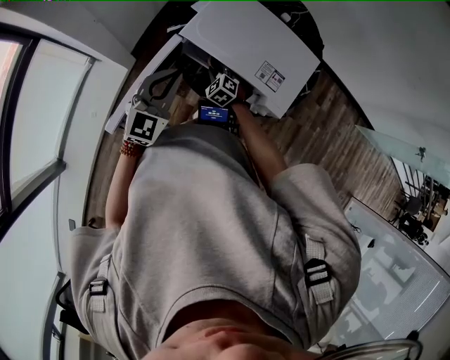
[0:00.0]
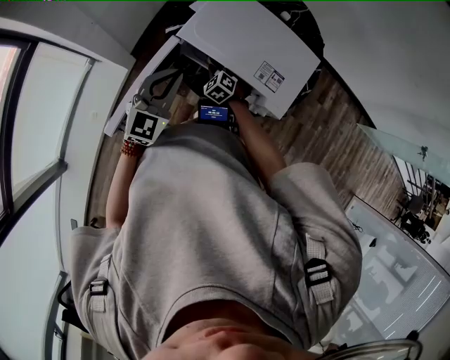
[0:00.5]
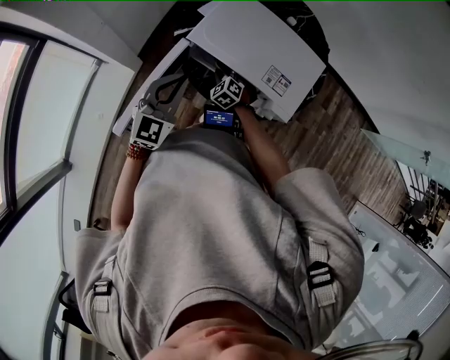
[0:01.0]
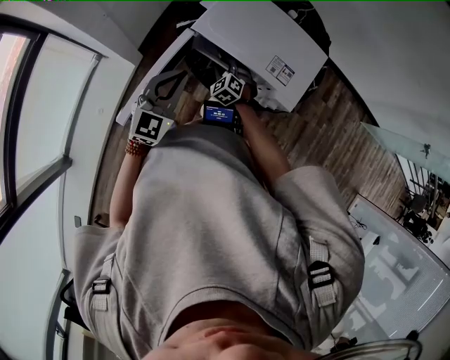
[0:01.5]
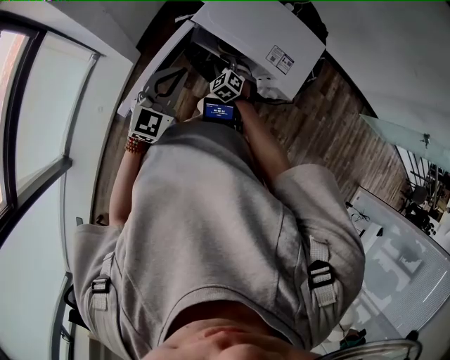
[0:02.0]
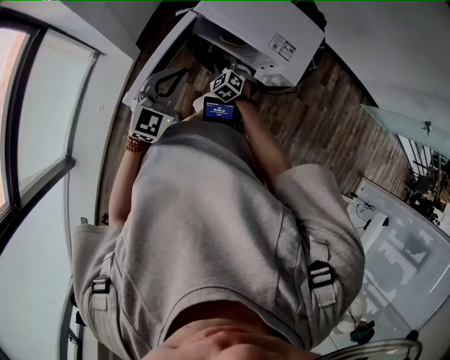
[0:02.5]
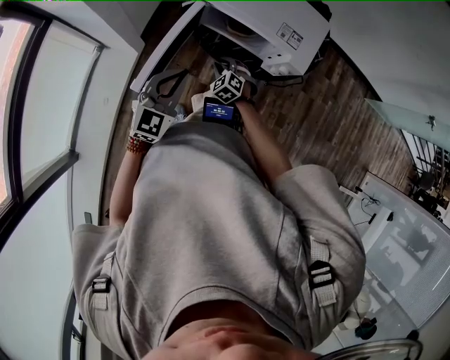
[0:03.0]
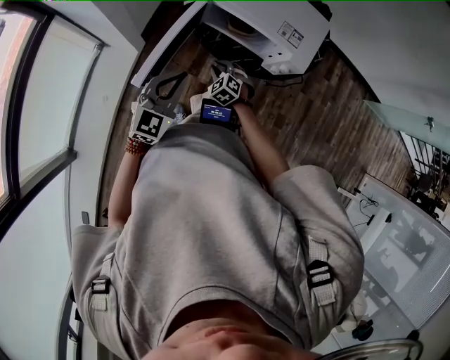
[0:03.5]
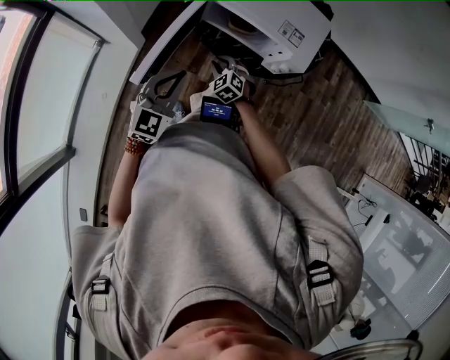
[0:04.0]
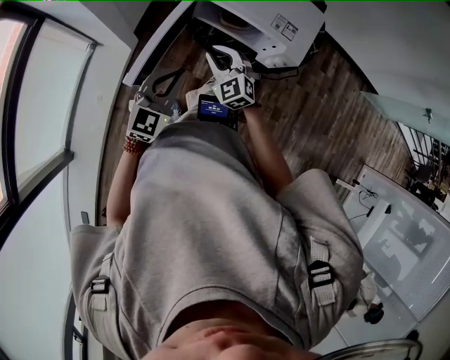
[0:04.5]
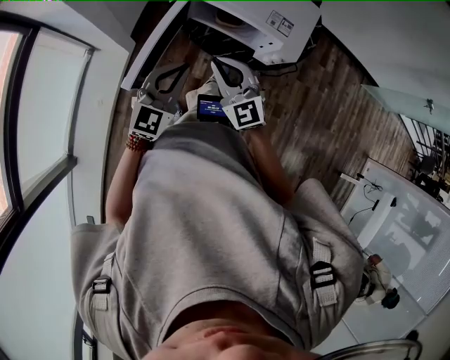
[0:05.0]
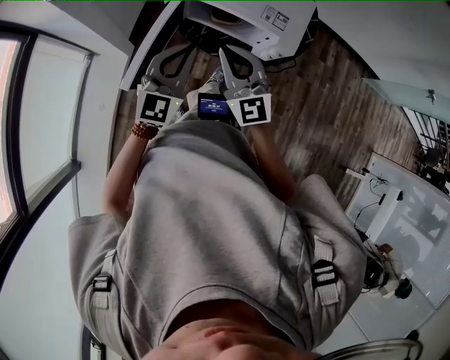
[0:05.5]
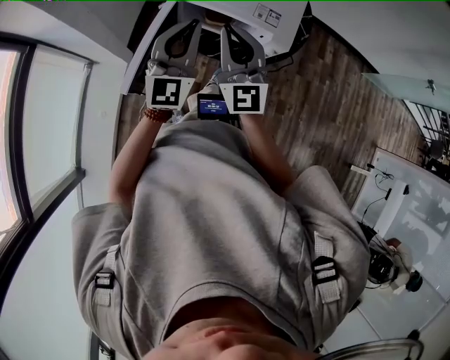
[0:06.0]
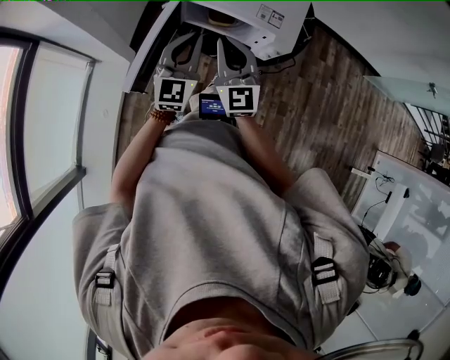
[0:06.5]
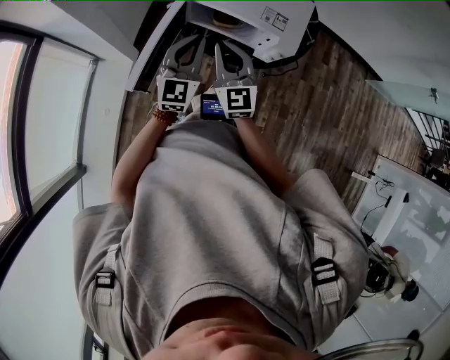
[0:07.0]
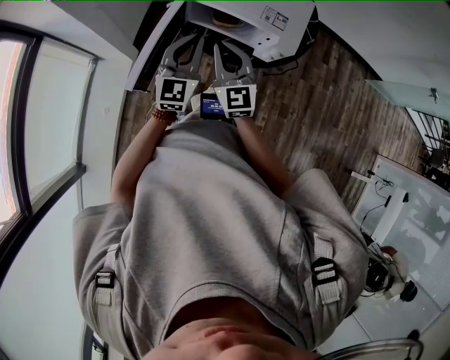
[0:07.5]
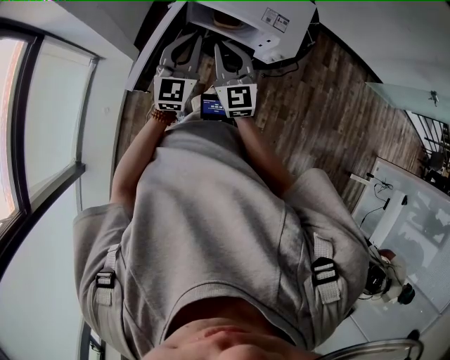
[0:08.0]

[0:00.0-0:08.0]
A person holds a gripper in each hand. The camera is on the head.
0:00.0 to 0:02.0: The left gripper moves backward, some 5 cm.
0:02.0 to 0:04.0: The two grippers go approximately 10 cm backward.
0:04.0 to 0:06.0: The left gripper is displaced upward, forward and to the right by roughly 15 cm, and turns by some 20 degrees, while the right gripper is displaced upward by some 35 cm, and angles its fingers upward, by about 50 degrees.
0:06.0 to 0:08.0: Both grippers move downward, some 10 cm.

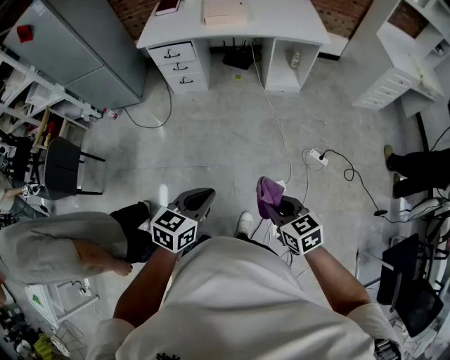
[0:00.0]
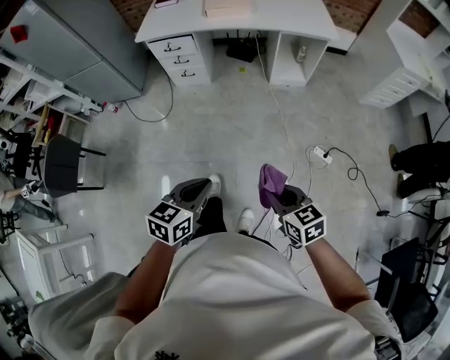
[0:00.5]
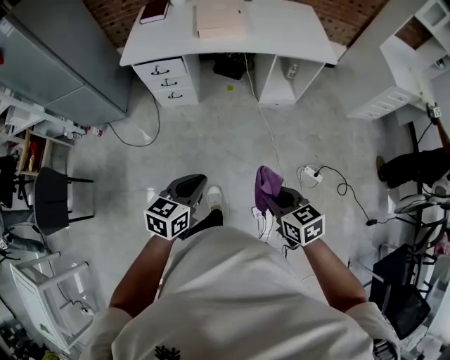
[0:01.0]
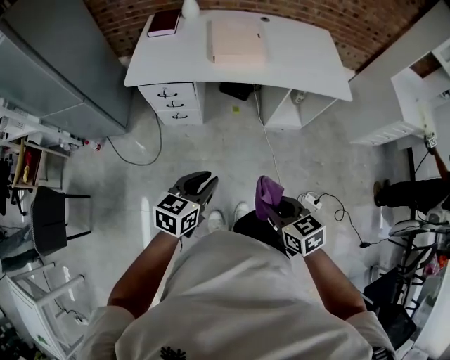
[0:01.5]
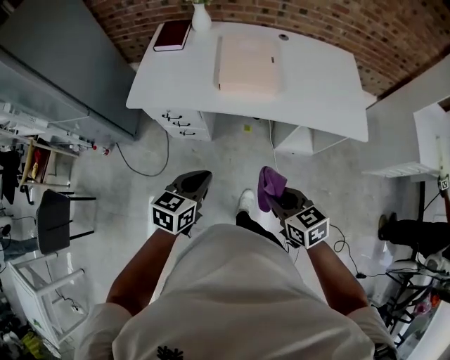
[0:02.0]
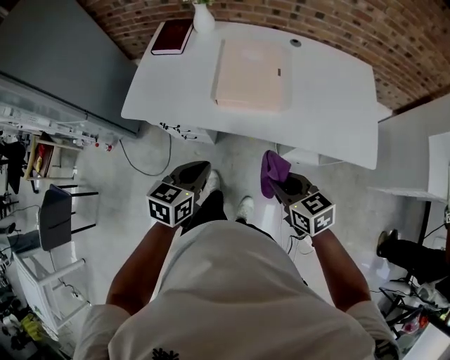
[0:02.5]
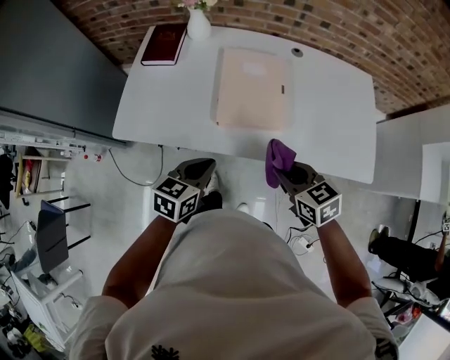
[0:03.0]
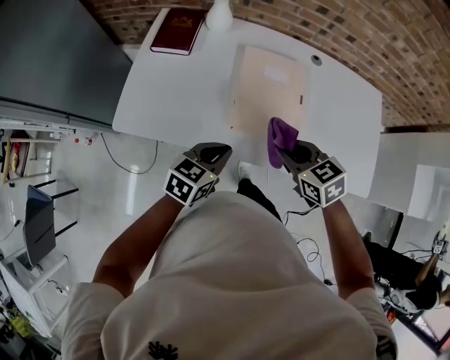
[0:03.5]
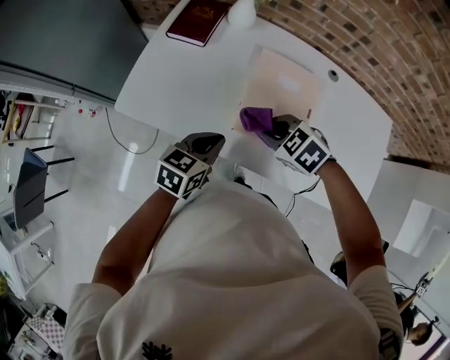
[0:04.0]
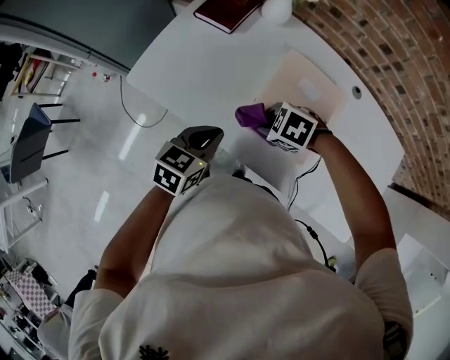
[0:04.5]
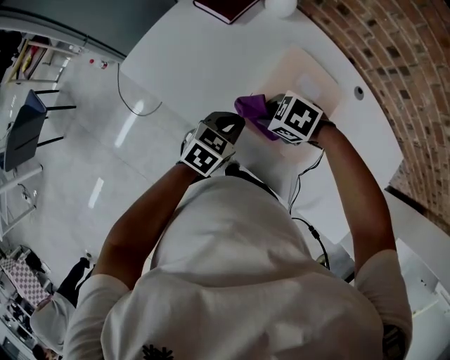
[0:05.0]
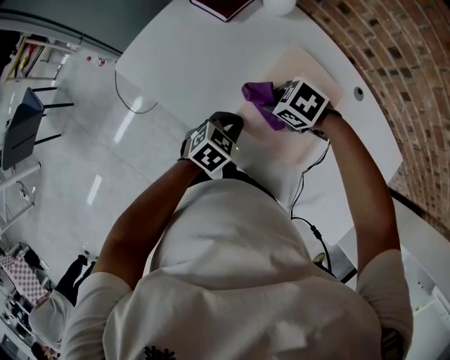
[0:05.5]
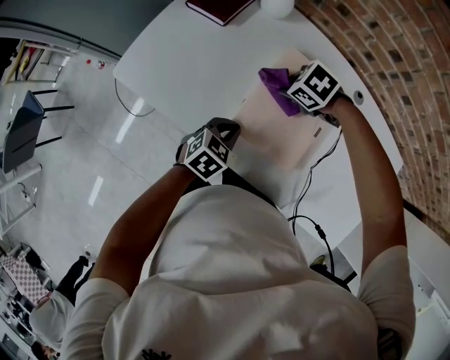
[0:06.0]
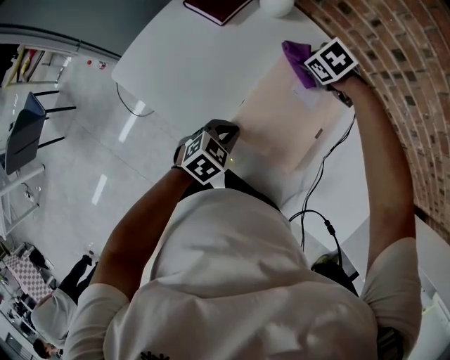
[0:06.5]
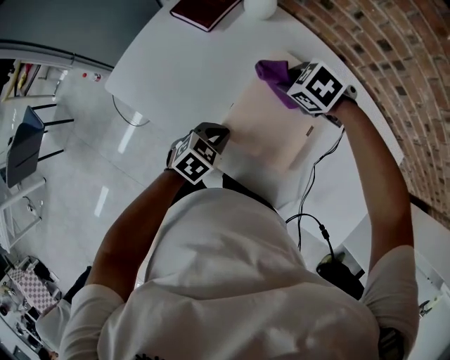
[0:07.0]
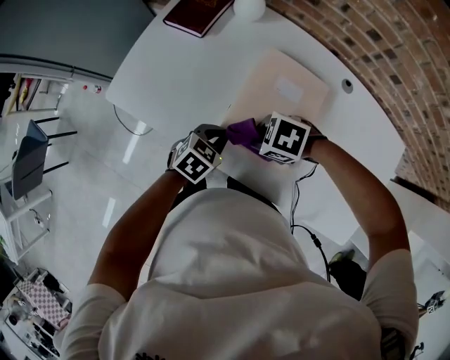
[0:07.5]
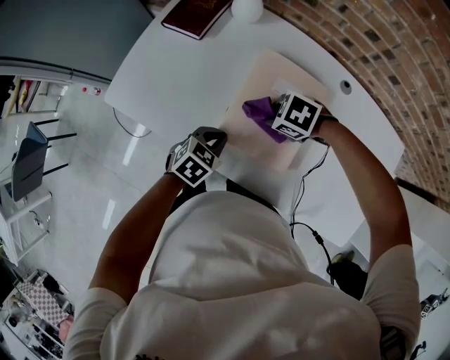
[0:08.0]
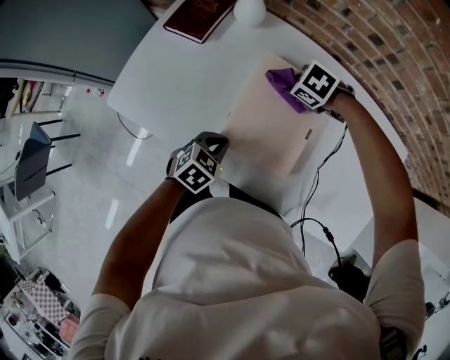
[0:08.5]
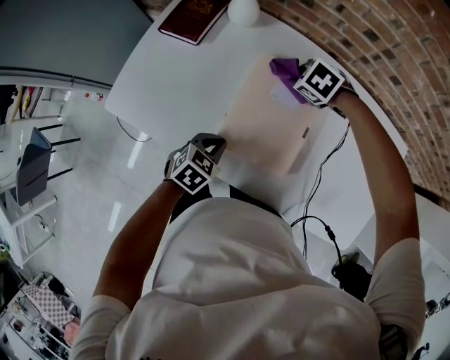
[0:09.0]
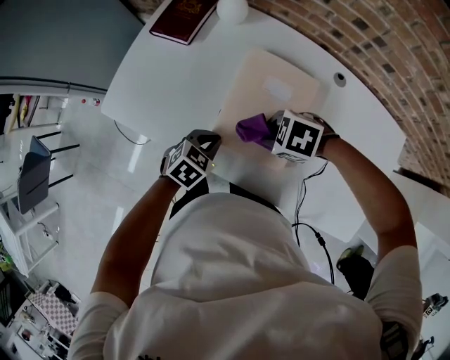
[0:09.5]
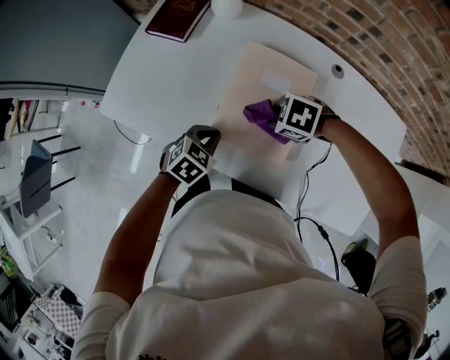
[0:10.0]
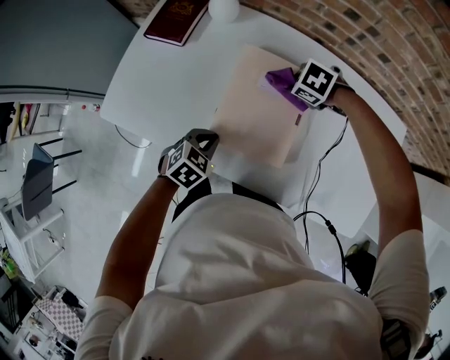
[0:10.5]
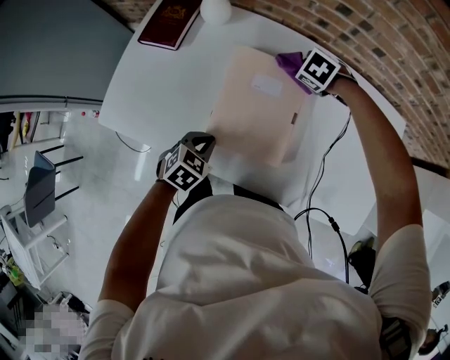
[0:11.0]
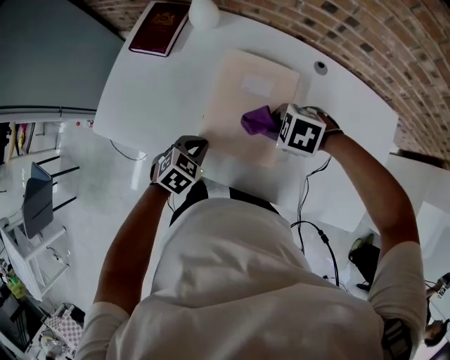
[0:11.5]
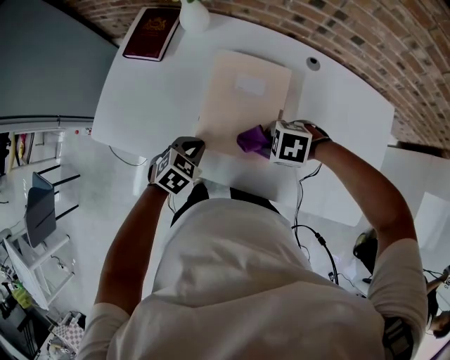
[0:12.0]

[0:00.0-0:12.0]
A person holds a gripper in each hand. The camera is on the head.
0:00.0 to 0:02.0: The pair of grippers is taken forward, roughly 70 cm.
0:02.0 to 0:04.0: The pair of grippers is taken forward, about 50 cm. The right gripper rotates approximately 50 degrees.
0:04.0 to 0:06.0: The left gripper is displaced downward by roughly 10 cm, while the right gripper ends up roughly 20 cm from where it was, and turns by roughly 20 degrees.

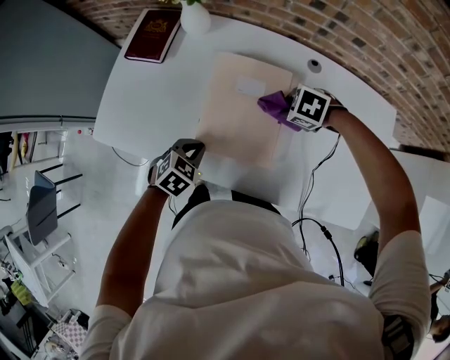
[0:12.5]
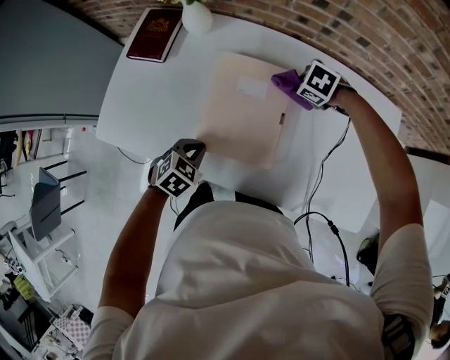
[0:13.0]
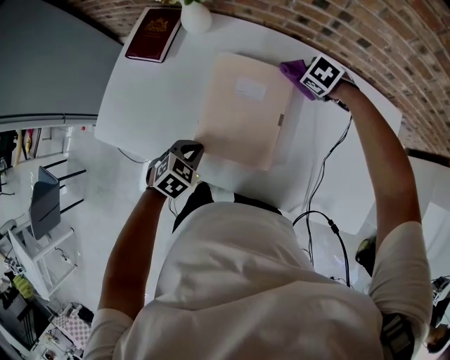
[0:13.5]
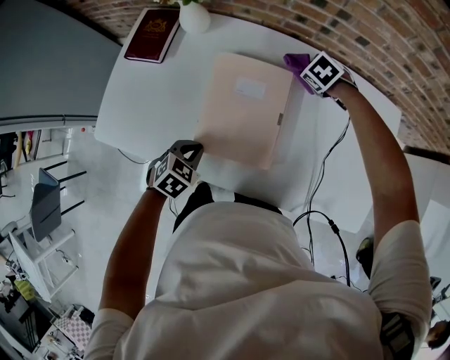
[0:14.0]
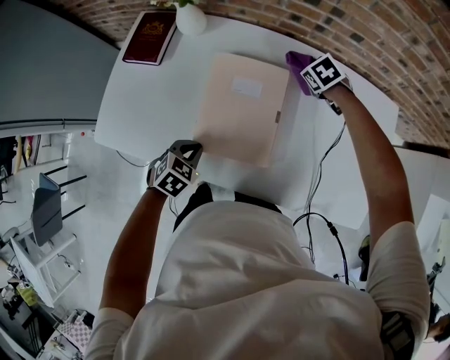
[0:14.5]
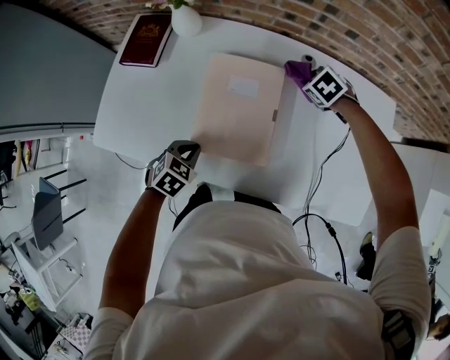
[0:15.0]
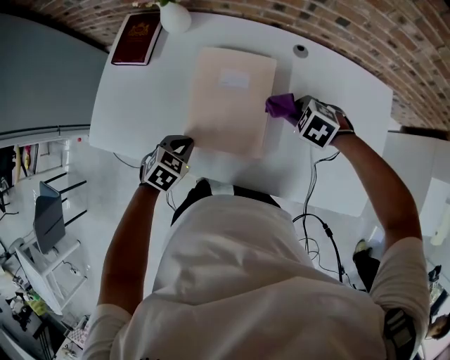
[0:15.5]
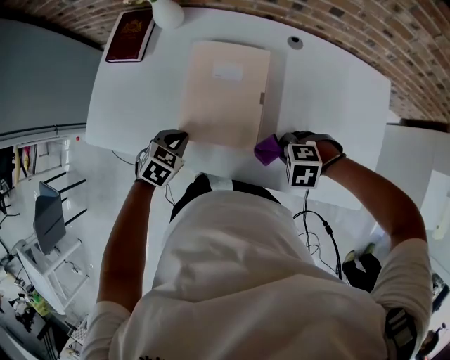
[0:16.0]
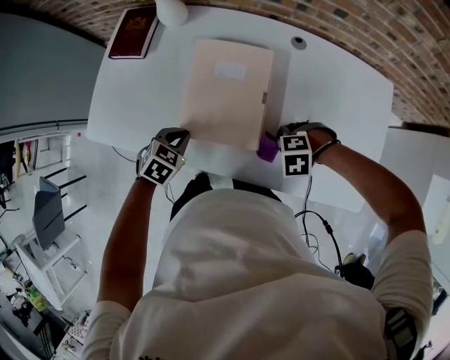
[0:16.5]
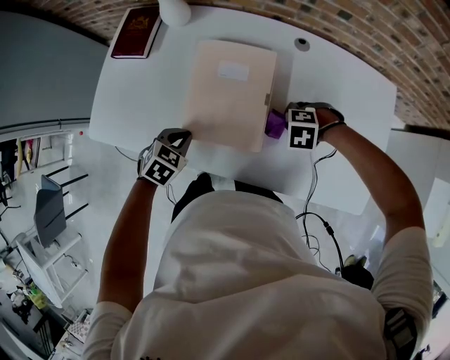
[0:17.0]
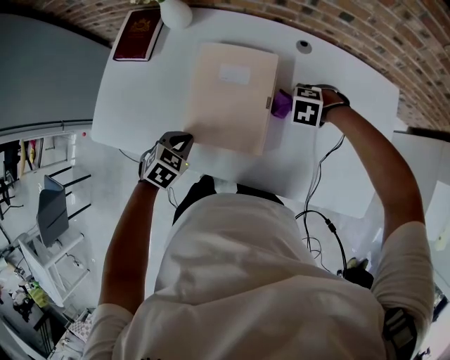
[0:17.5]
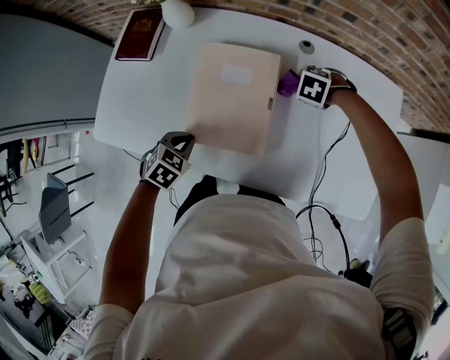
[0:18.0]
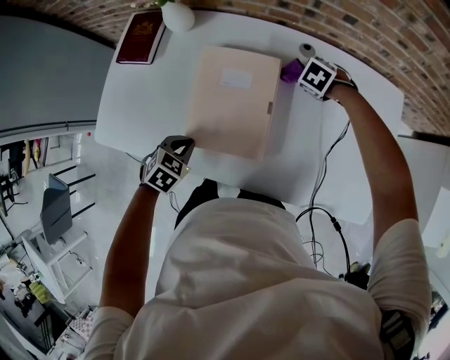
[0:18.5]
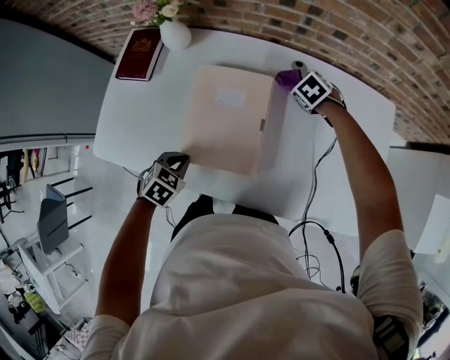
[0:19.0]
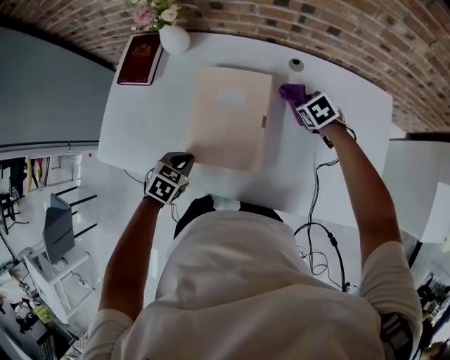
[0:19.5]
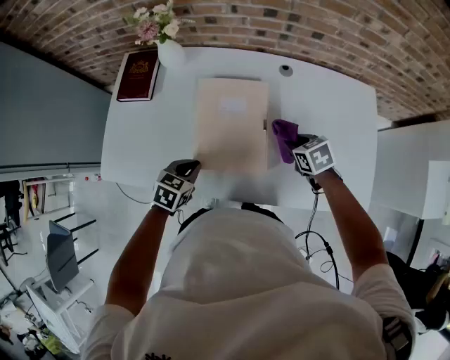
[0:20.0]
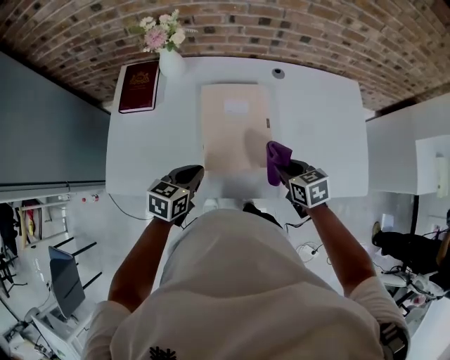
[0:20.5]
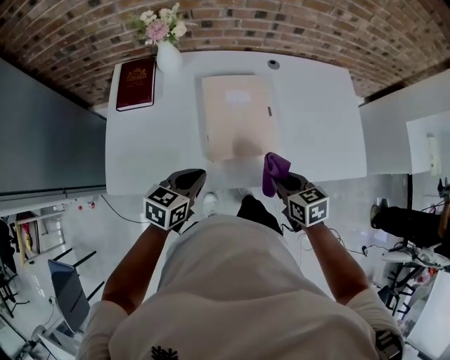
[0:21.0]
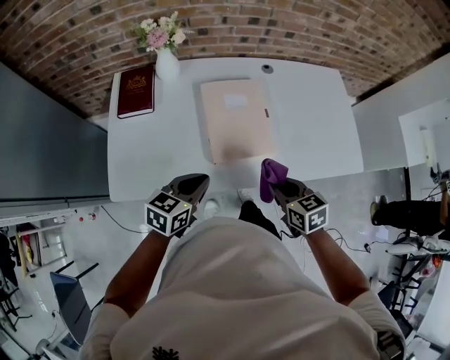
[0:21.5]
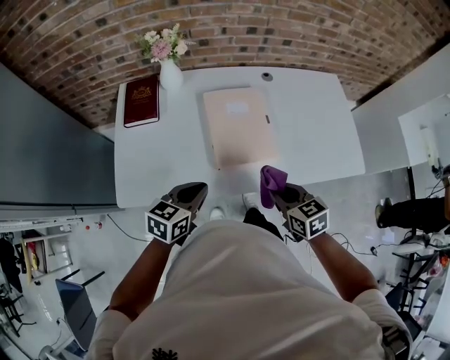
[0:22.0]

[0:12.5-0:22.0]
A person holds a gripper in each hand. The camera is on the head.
0:12.5 to 0:14.5: The right gripper ends up approximately 15 cm from where it was, and swivels approximately 40 degrees.
0:14.5 to 0:16.5: The right gripper changes place by roughly 30 cm, and rotates around the line of its fingers by roughly 50 degrees, counterclockwise from behind.
0:16.5 to 0:18.0: The right gripper ends up approximately 20 cm from where it was, and turns by approximately 30 degrees.
0:18.0 to 0:20.0: The right gripper moves approximately 15 cm, and rotates around the line of its fingers by approximately 50 degrees, clockwise from behind.
0:20.0 to 0:22.0: The left gripper is displaced upward, backward and to the left by about 20 cm, and turns by some 30 degrees; the right gripper is displaced backward, to the left and upward by approximately 35 cm, and rotates some 30 degrees.
